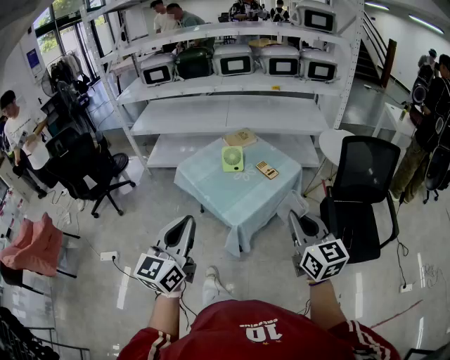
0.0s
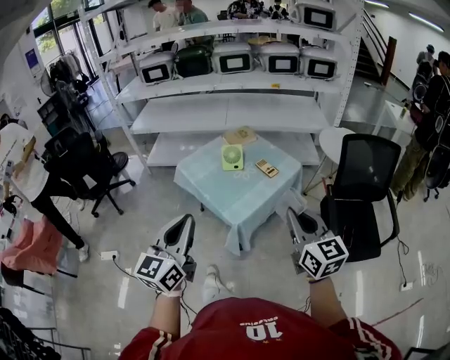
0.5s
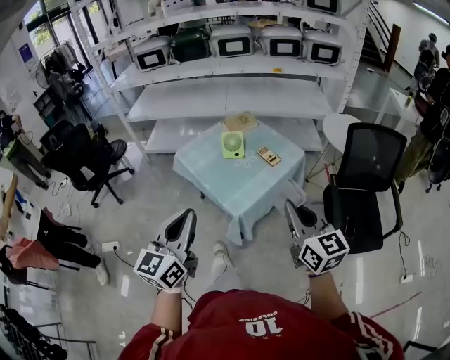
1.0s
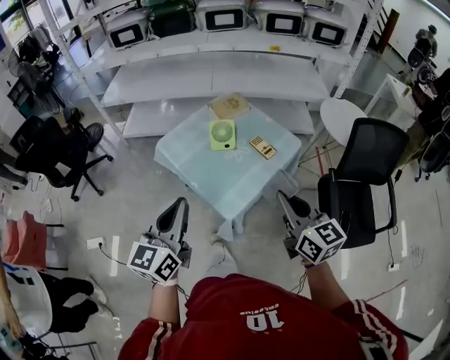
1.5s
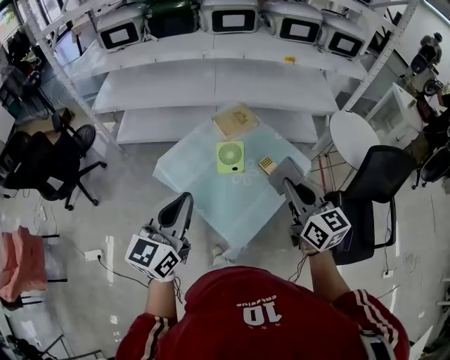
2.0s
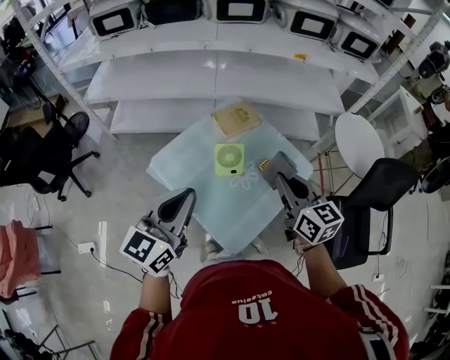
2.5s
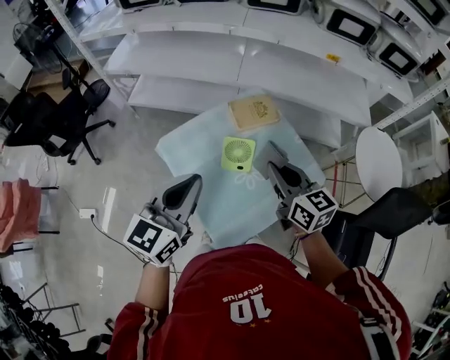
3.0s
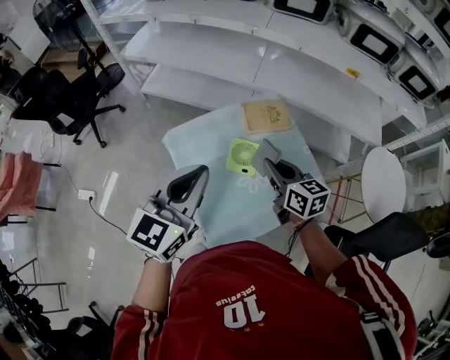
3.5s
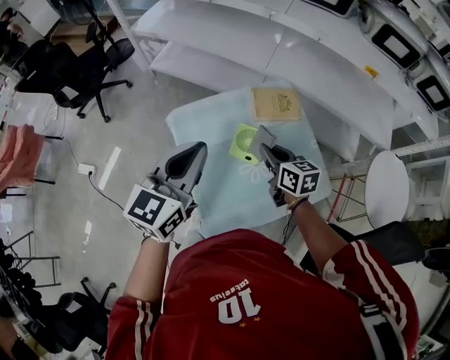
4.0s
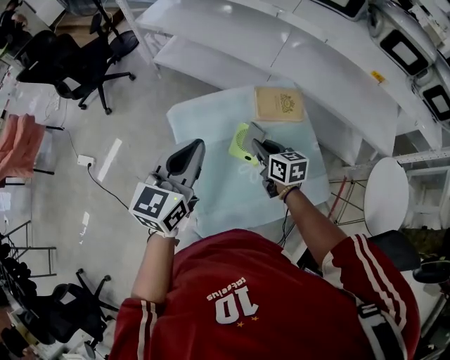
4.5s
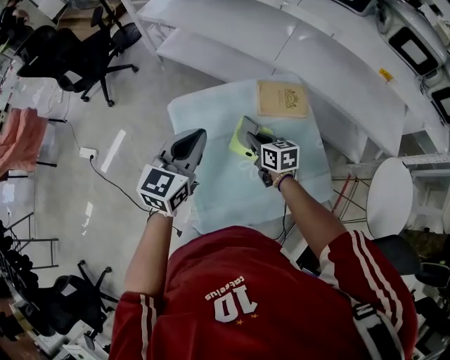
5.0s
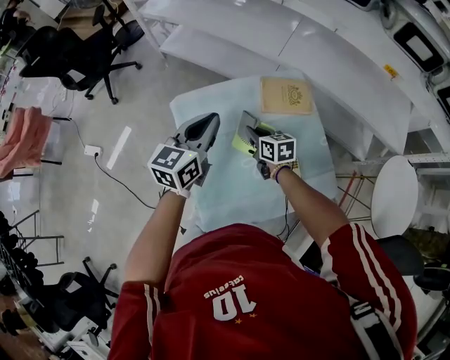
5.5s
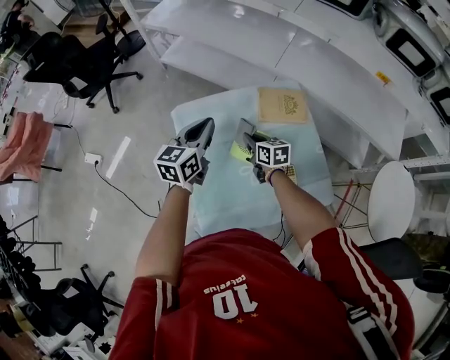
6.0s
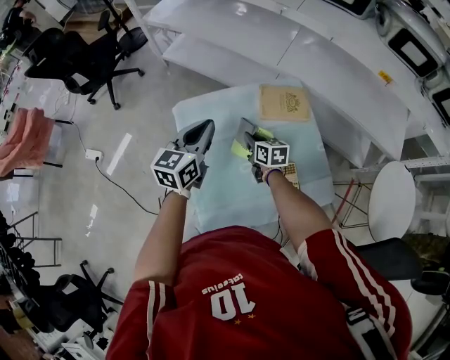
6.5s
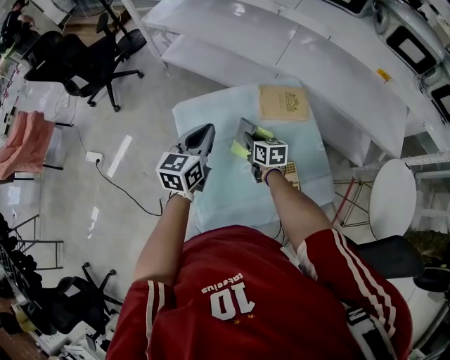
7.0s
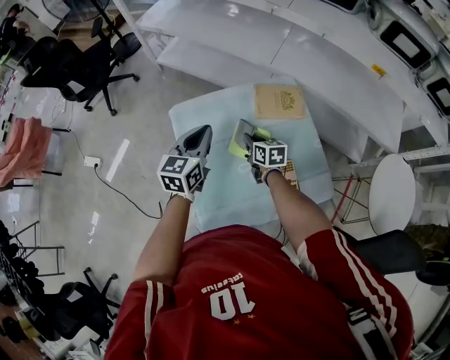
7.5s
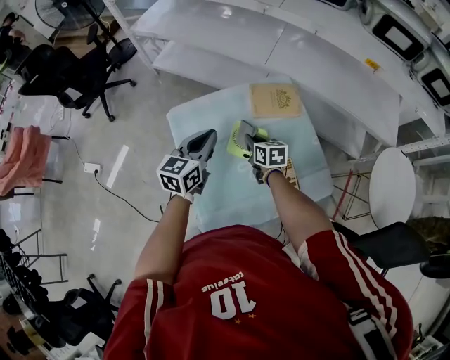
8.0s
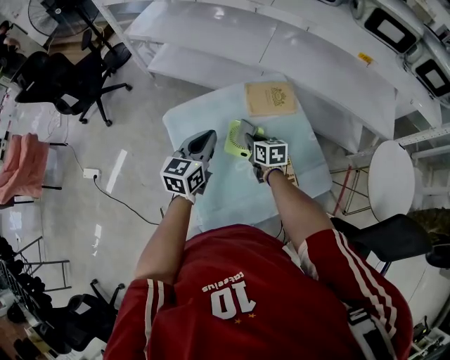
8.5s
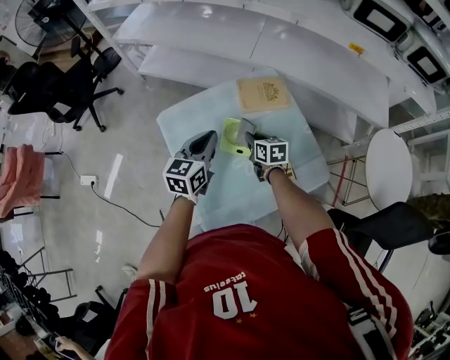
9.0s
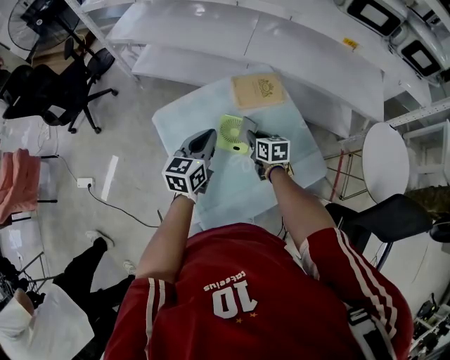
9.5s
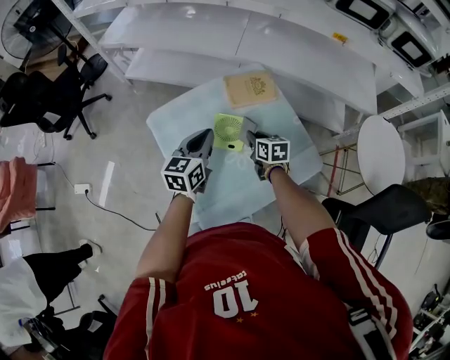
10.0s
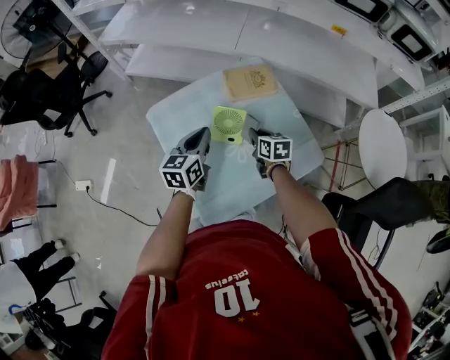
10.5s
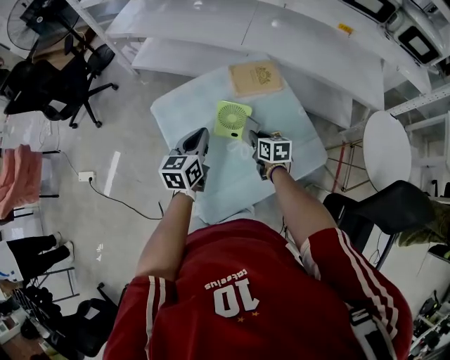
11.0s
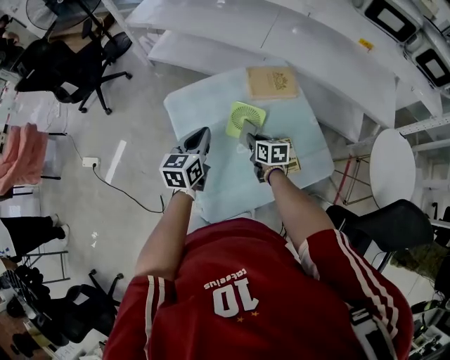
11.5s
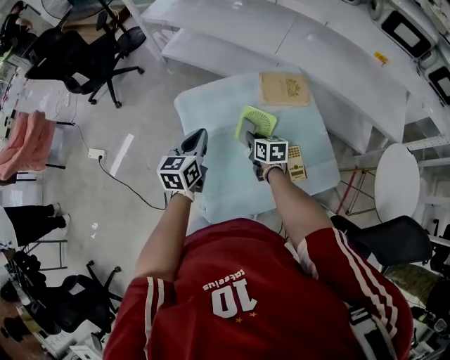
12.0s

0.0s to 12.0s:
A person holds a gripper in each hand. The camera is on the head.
0.0s to 2.0s: Both grippers move forward, roughly 35 cm.
2.0s to 4.0s: The right gripper shifts by roughly 30 cm, and changes its angle by approximately 40 degrees. The left gripper changes place by approximately 15 cm.
4.0s to 6.0s: The grippers both shift downward and forward by roughly 15 cm.
6.0s to 8.0s: The grippers move only a little.
8.0s to 10.0s: The right gripper is displaced to the right by about 5 cm.
10.0s to 12.0s: The two grippers go approximately 10 cm to the left.

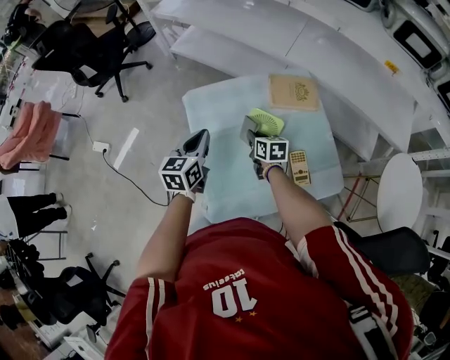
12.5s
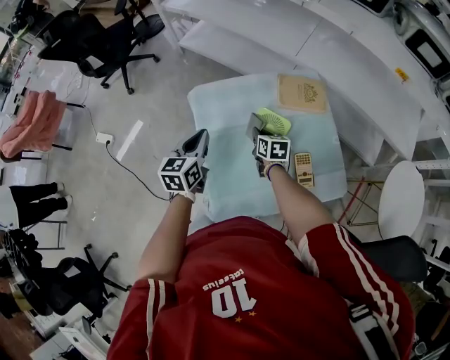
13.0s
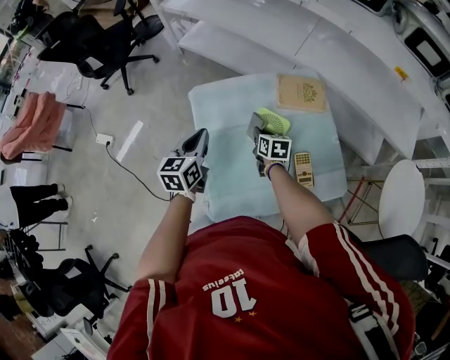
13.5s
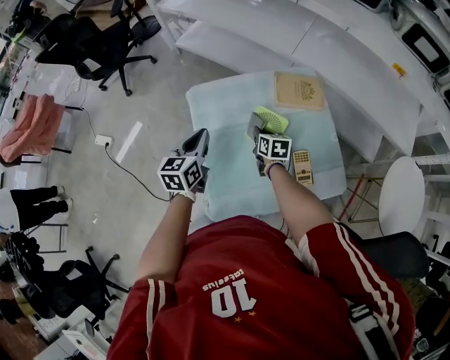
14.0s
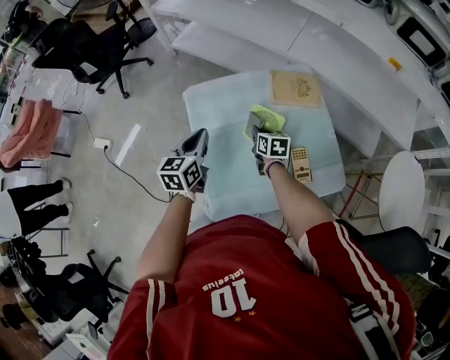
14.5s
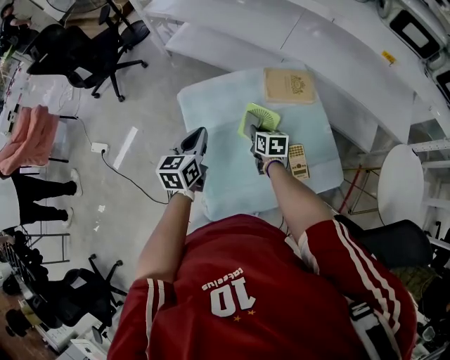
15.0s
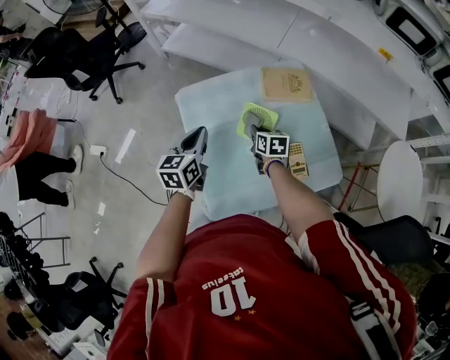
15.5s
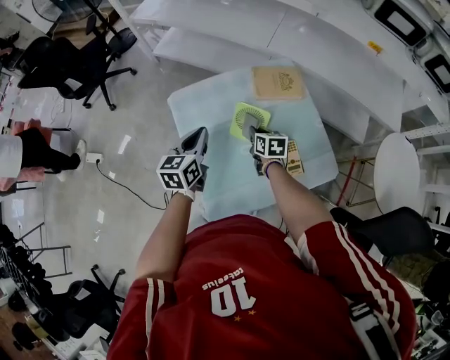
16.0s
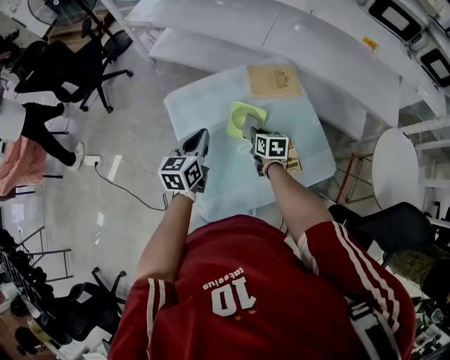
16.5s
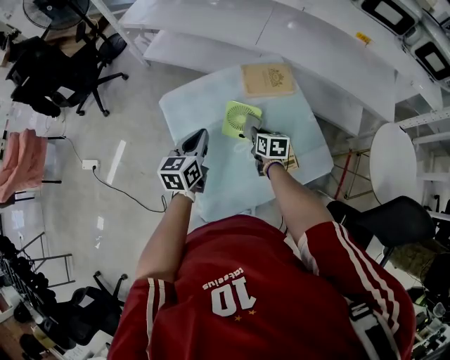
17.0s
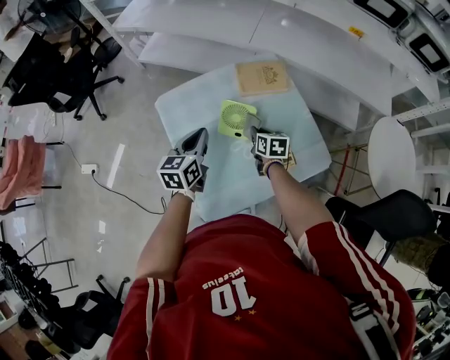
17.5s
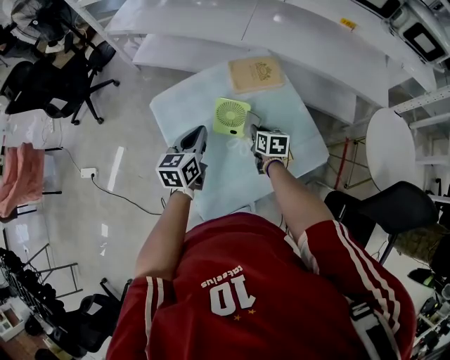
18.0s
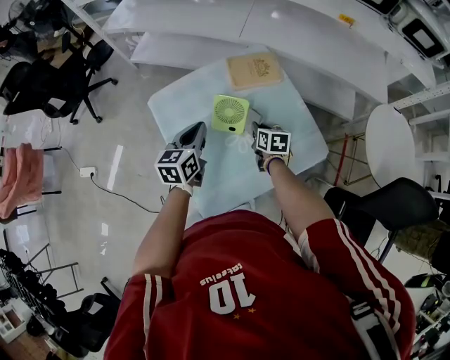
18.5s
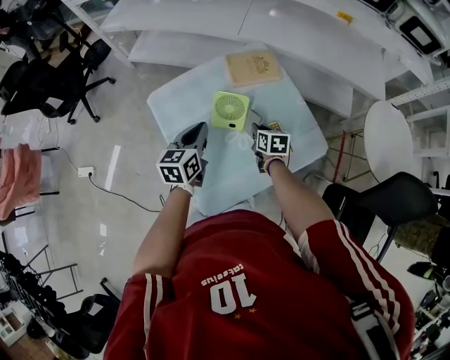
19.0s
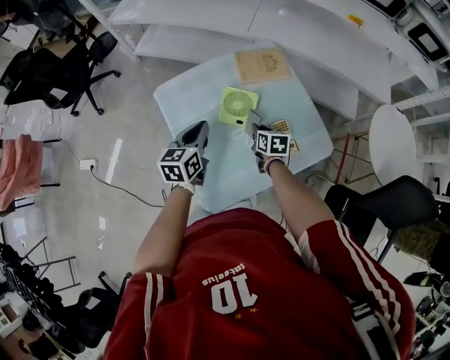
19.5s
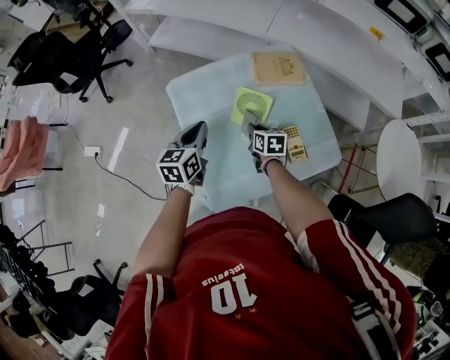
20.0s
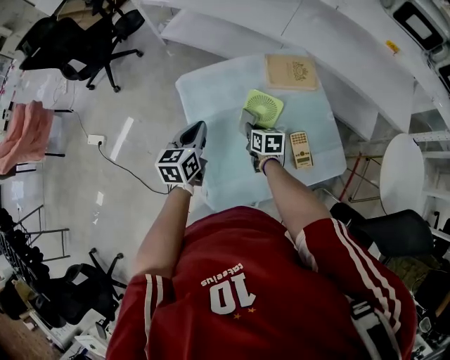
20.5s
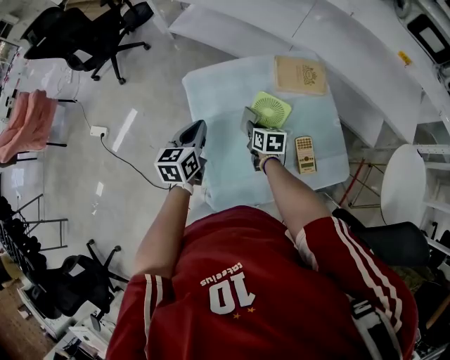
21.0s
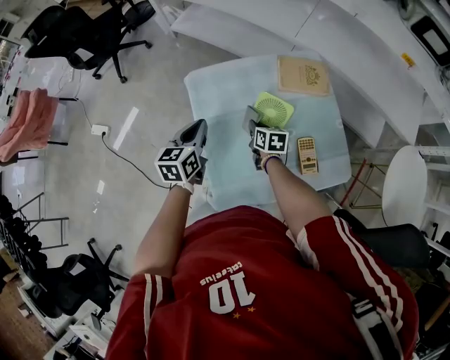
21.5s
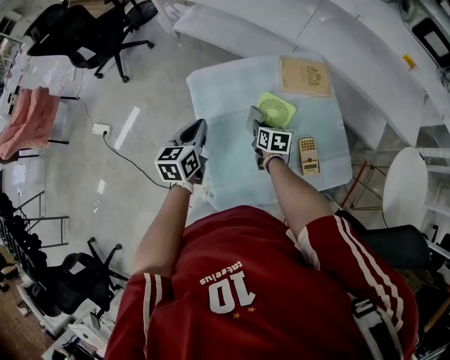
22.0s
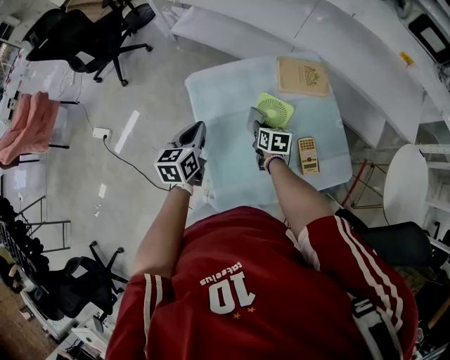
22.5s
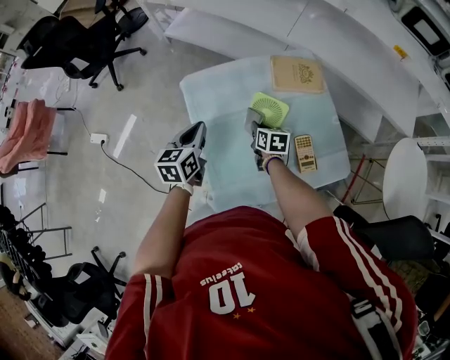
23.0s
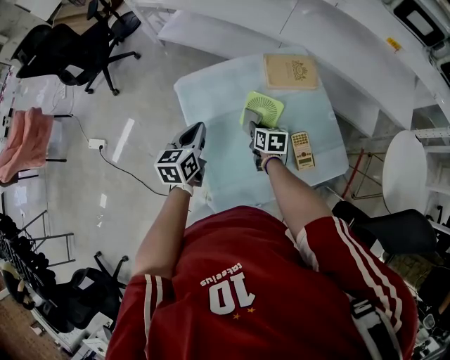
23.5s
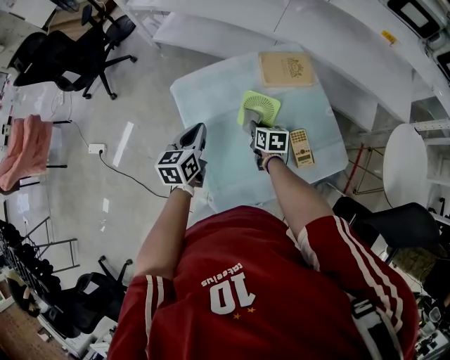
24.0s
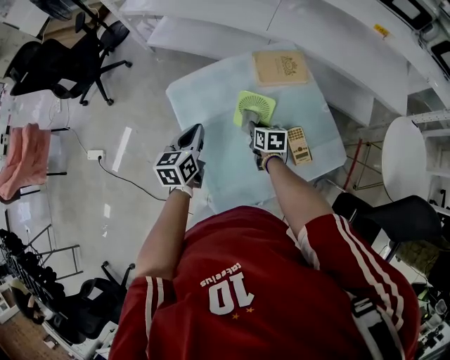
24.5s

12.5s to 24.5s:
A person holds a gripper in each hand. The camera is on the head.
12.5s to 14.5s: The grippers move only a little.
14.5s to 16.5s: The two grippers go some 5 cm to the right.
16.5s to 18.5s: The right gripper heads to the right, covering roughly 5 cm.
18.5s to 20.5s: Both grippers travel together to the left, some 10 cm.
20.5s to 24.5s: There are only small adjustments of the grippers.

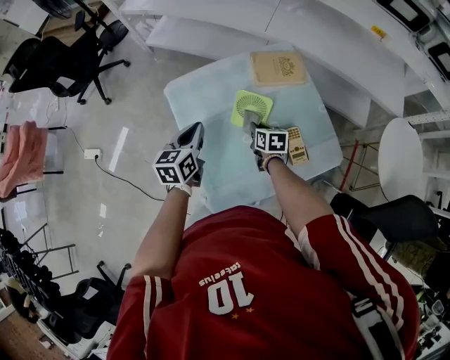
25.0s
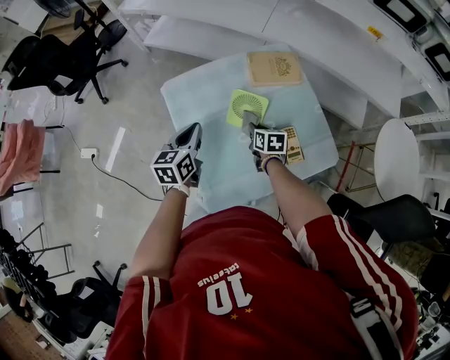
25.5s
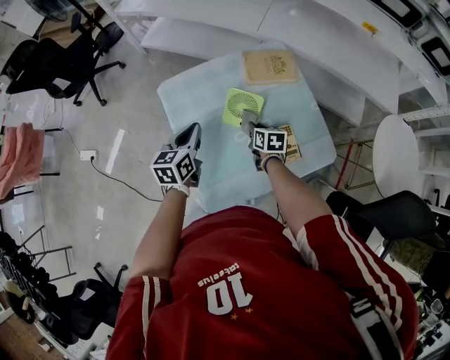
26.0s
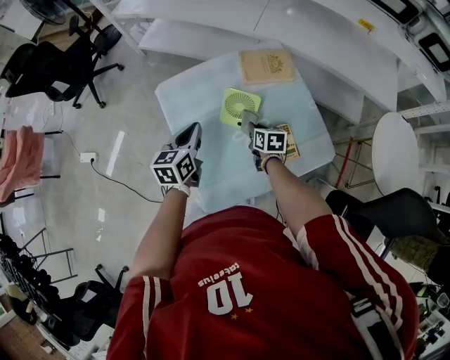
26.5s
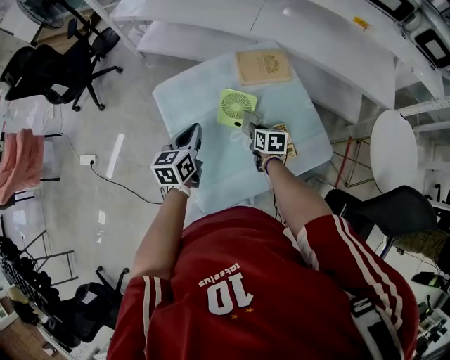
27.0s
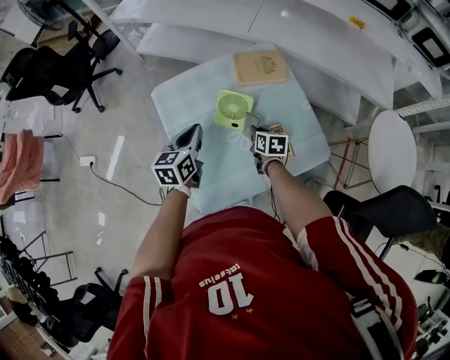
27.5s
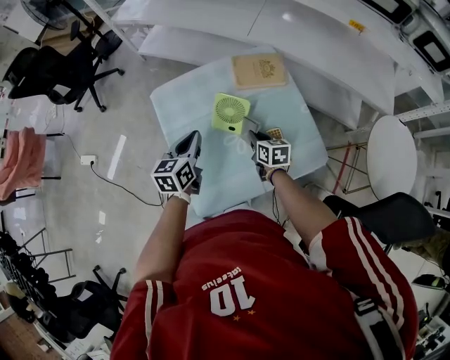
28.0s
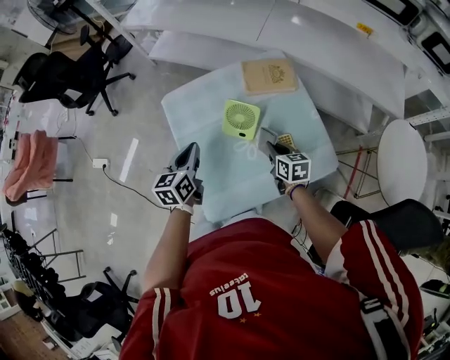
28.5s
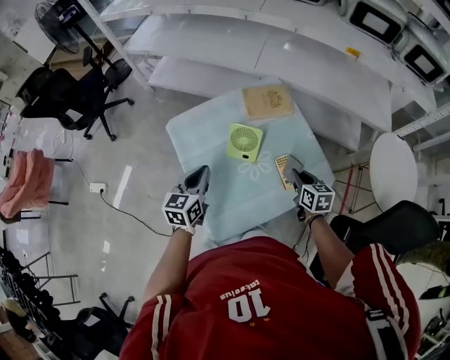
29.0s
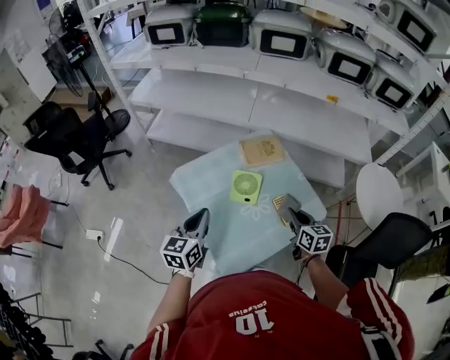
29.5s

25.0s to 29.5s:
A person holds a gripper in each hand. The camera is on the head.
25.0s to 27.0s: The right gripper shifts by about 5 cm.
27.0s to 29.5s: The right gripper moves upward and backward, approximately 25 cm, and changes its angle by roughly 20 degrees, while the left gripper moves upward and backward, about 15 cm.
